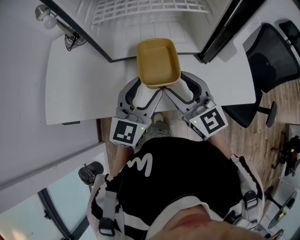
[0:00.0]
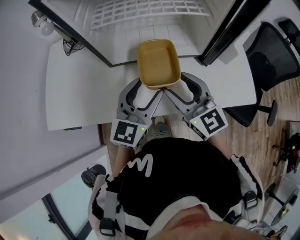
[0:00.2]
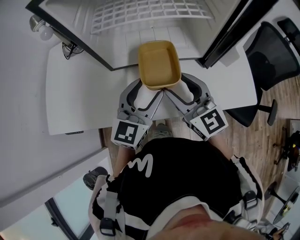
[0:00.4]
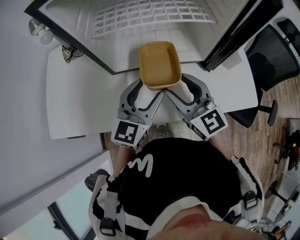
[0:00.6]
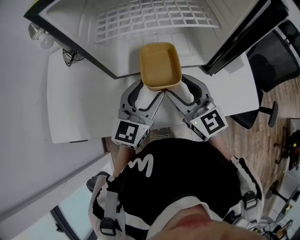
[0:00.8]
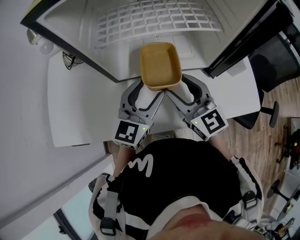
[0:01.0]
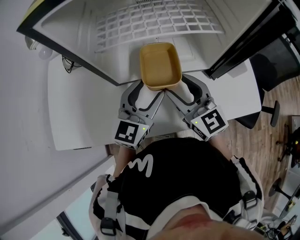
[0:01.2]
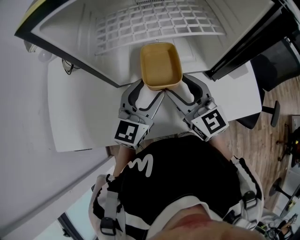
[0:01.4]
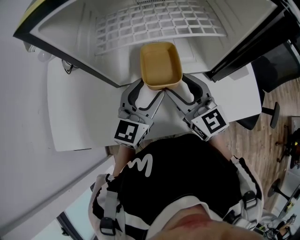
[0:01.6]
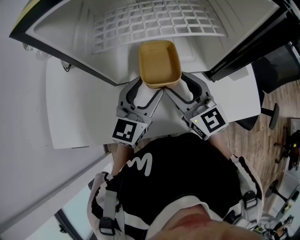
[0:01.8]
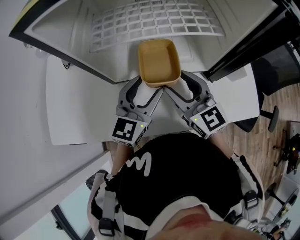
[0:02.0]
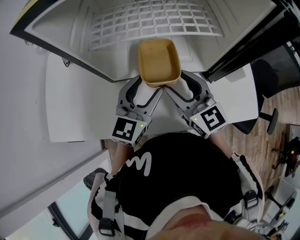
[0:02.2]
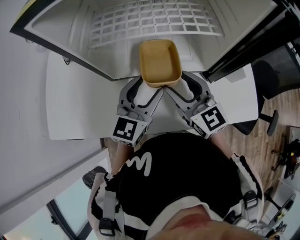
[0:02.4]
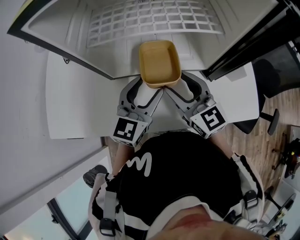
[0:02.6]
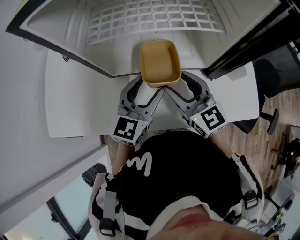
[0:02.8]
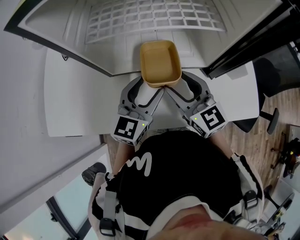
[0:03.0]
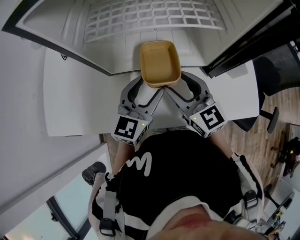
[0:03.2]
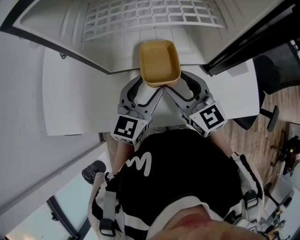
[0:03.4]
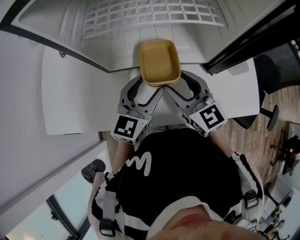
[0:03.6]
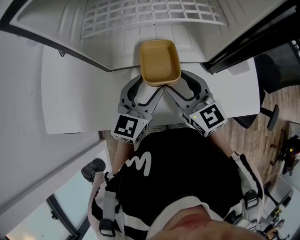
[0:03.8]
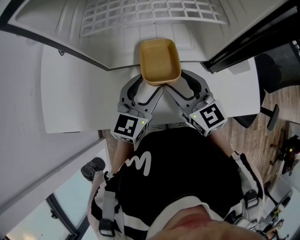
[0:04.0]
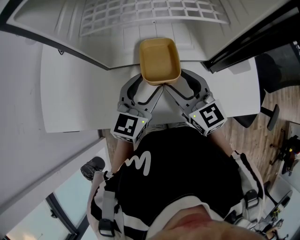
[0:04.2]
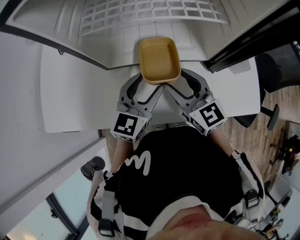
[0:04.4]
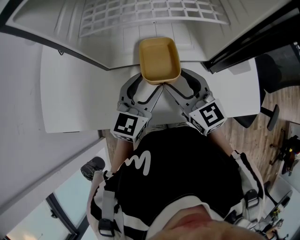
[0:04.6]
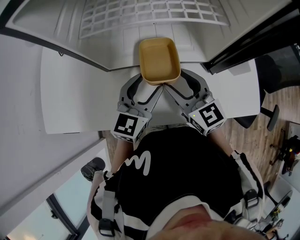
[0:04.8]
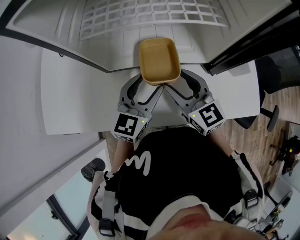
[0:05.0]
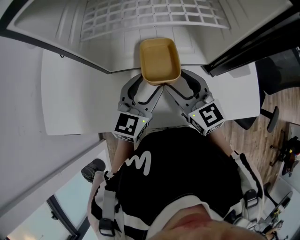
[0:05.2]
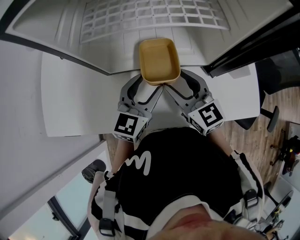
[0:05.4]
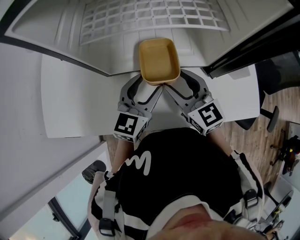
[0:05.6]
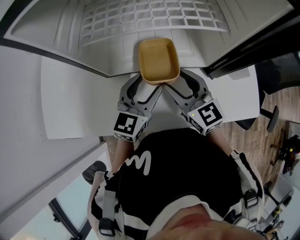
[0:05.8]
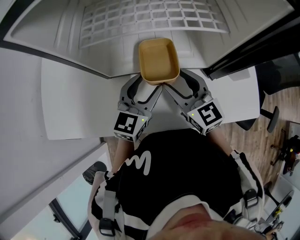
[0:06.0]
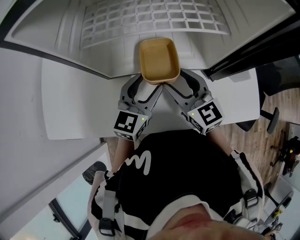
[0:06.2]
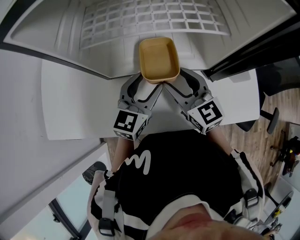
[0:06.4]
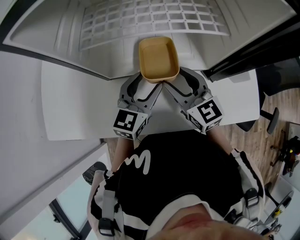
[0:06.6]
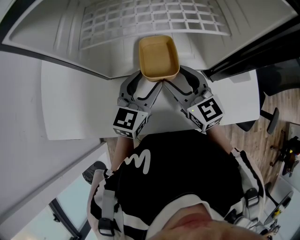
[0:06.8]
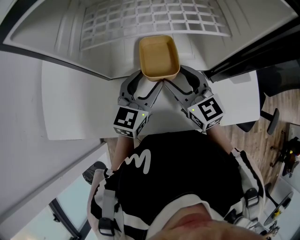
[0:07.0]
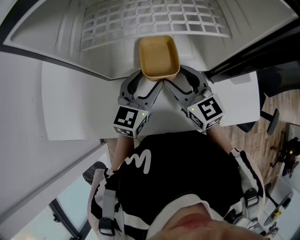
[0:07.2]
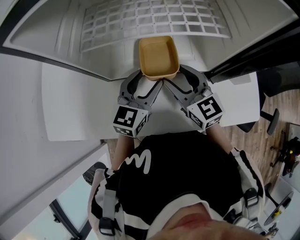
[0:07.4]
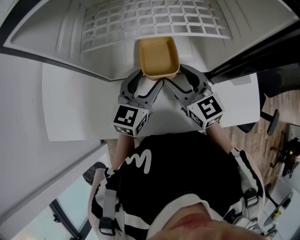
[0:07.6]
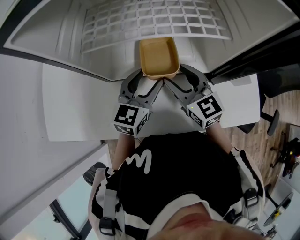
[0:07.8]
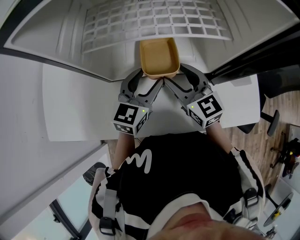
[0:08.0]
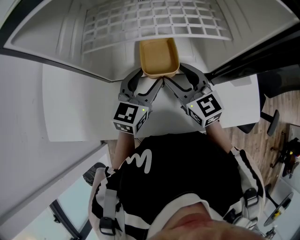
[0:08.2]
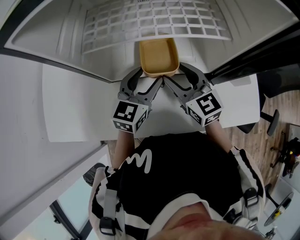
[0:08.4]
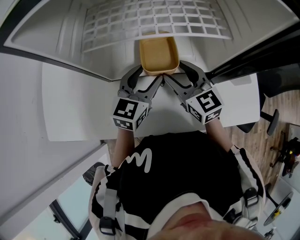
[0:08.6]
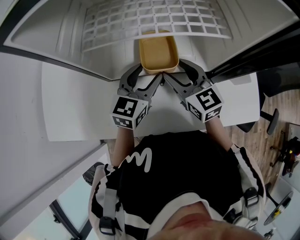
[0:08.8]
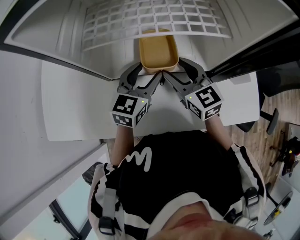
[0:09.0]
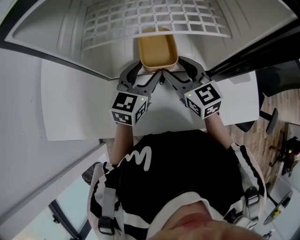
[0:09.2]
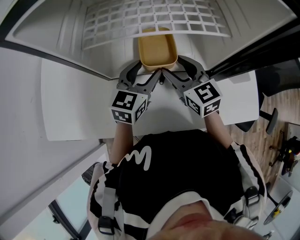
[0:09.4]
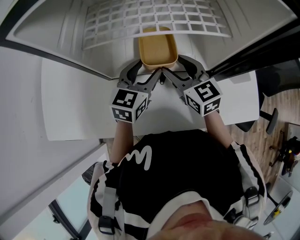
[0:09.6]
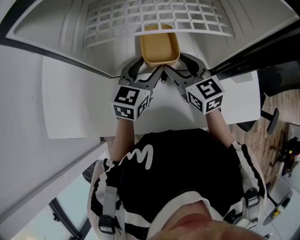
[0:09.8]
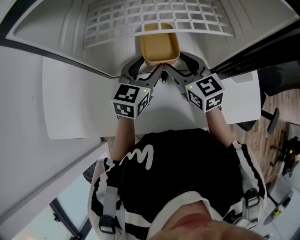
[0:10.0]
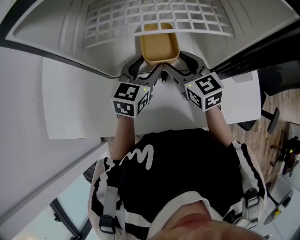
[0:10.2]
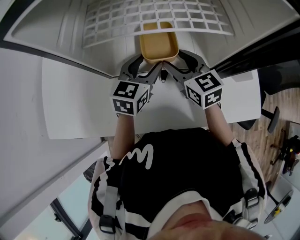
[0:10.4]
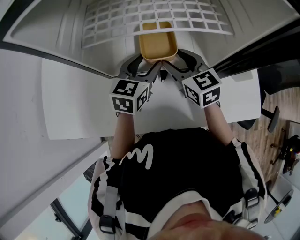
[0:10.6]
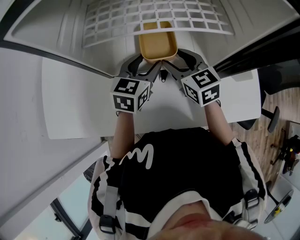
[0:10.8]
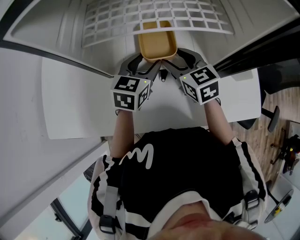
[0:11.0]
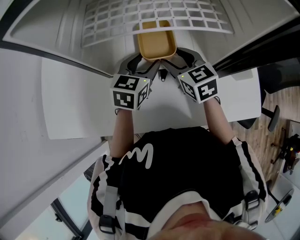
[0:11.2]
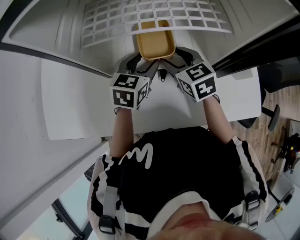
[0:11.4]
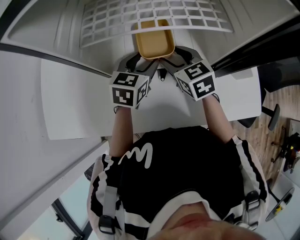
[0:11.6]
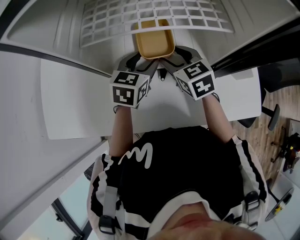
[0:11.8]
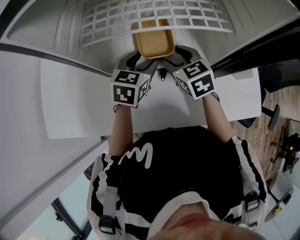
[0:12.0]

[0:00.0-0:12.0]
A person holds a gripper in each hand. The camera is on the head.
0:00.0 to 0:01.6: The two grippers go approximately 10 cm forward.
0:01.6 to 0:06.0: The grippers make only small movements.
0:06.0 to 0:09.0: The grippers make only small movements.
0:09.0 to 0:12.0: The grippers stay close to where they were, moving slightly.

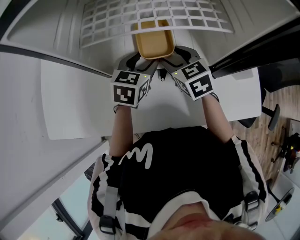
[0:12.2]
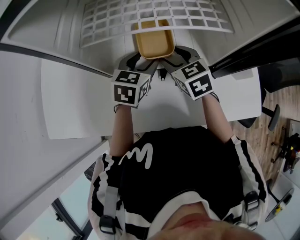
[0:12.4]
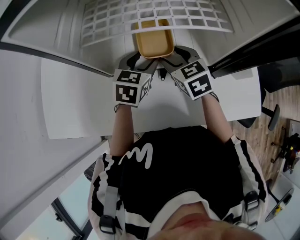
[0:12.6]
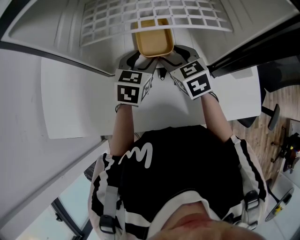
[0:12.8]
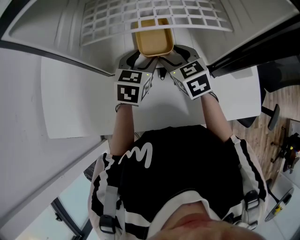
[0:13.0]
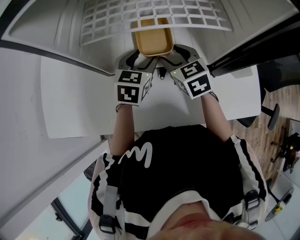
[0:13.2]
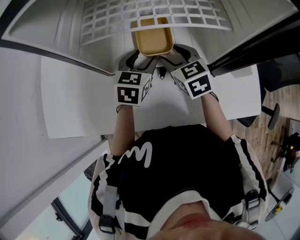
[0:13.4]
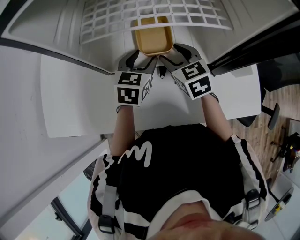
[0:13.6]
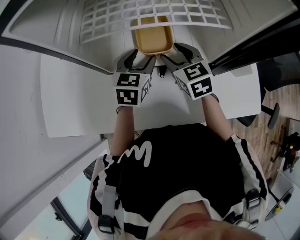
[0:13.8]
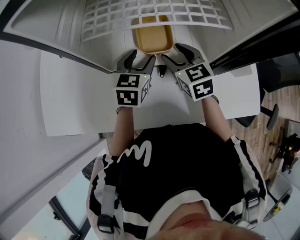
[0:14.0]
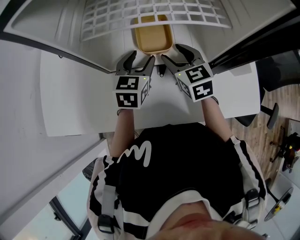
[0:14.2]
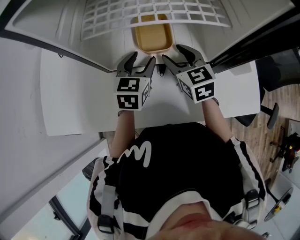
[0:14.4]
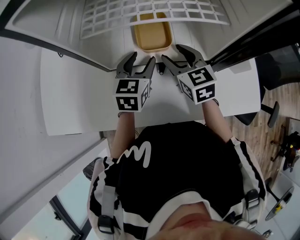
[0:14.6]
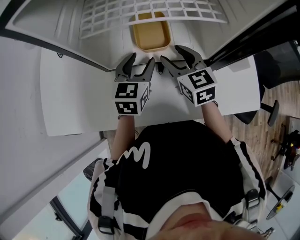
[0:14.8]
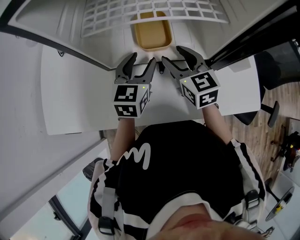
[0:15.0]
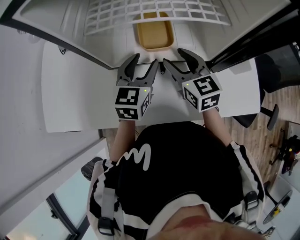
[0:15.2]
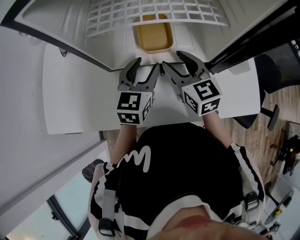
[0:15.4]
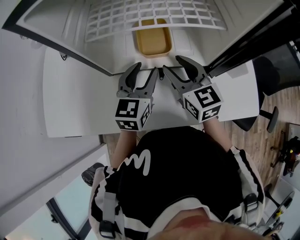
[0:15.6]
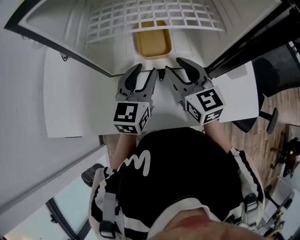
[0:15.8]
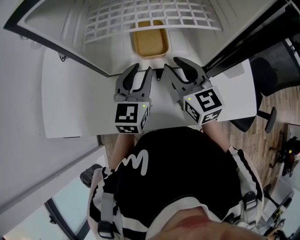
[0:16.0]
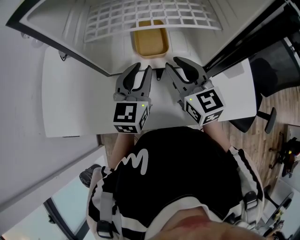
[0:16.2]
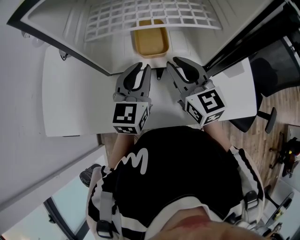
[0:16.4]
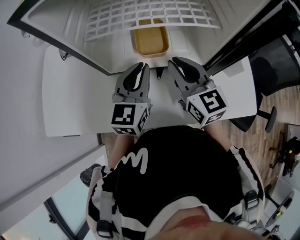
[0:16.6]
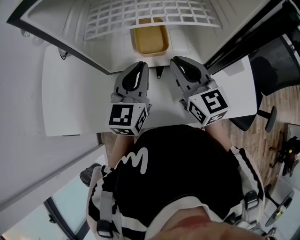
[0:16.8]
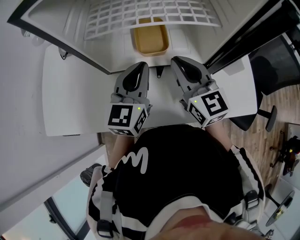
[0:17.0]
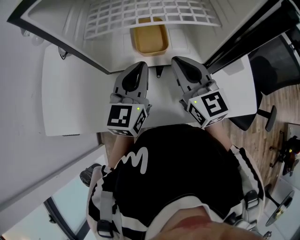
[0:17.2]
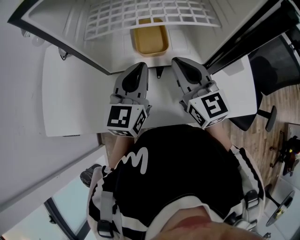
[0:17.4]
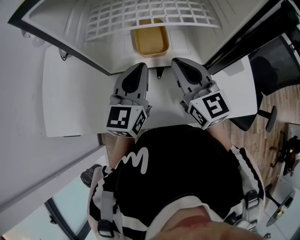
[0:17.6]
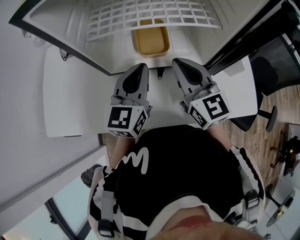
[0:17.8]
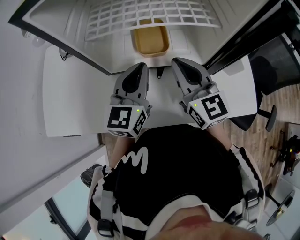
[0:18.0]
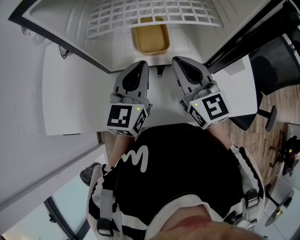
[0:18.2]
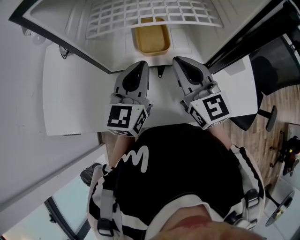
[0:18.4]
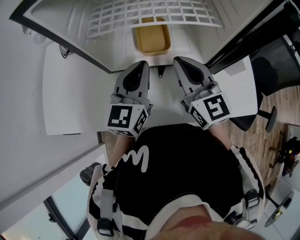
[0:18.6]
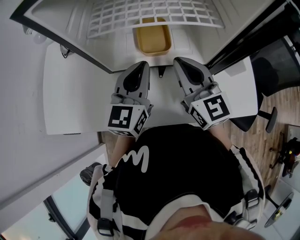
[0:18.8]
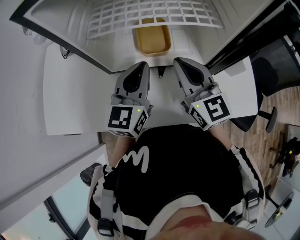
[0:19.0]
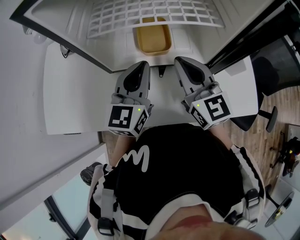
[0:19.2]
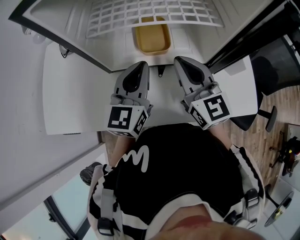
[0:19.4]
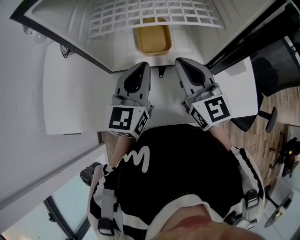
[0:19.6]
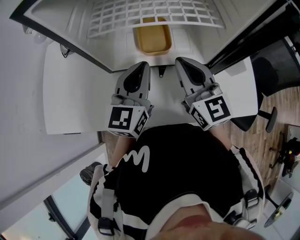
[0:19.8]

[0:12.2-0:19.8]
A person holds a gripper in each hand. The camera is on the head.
0:12.2 to 0:13.8: The grippers move only a little.
0:13.8 to 0:15.2: The right gripper moves approximately 5 cm. The left gripper shifts by roughly 5 cm.
0:15.2 to 0:16.8: Both grippers travel together upward, about 5 cm. The left gripper closes its fingers. Meanwhile the right gripper closes up.
0:16.8 to 0:18.2: There are only small adjustments of the grippers.
0:18.2 to 0:19.8: Neither gripper changes place.

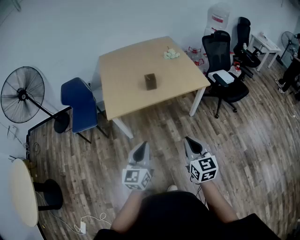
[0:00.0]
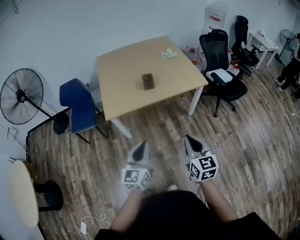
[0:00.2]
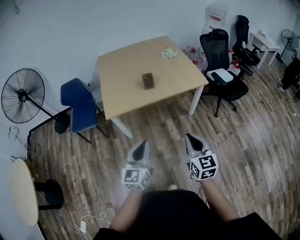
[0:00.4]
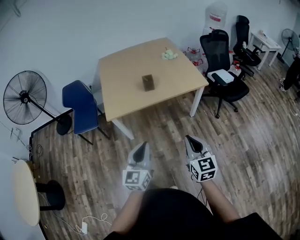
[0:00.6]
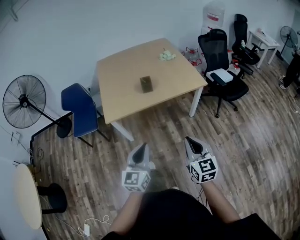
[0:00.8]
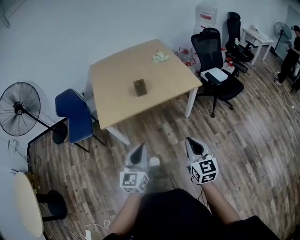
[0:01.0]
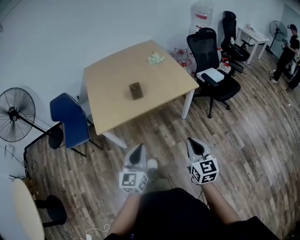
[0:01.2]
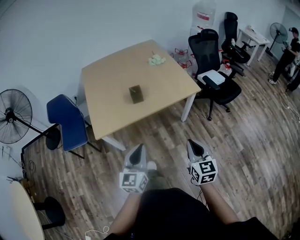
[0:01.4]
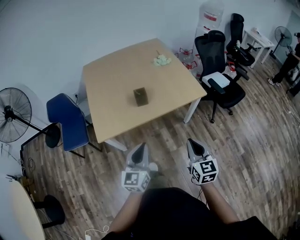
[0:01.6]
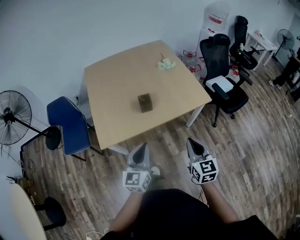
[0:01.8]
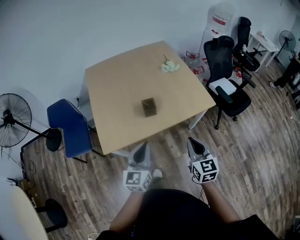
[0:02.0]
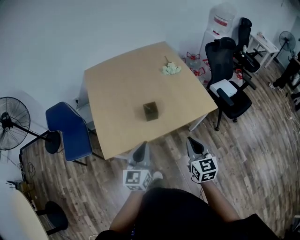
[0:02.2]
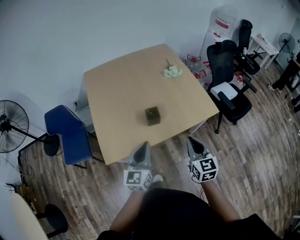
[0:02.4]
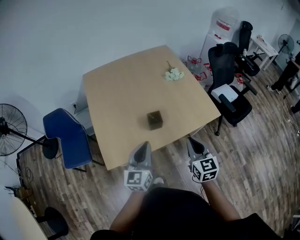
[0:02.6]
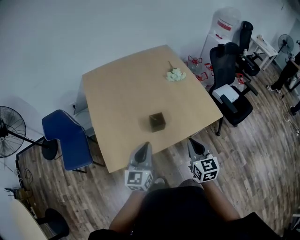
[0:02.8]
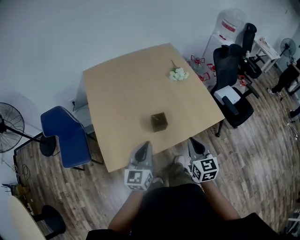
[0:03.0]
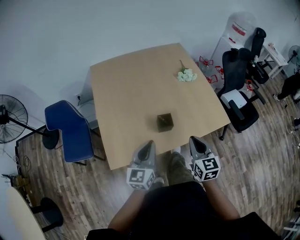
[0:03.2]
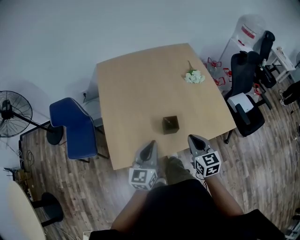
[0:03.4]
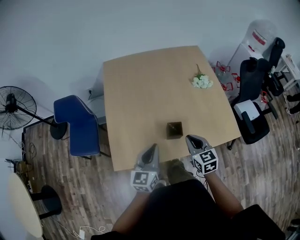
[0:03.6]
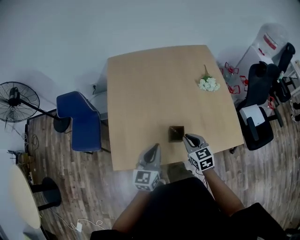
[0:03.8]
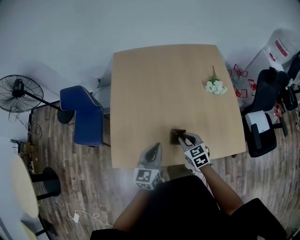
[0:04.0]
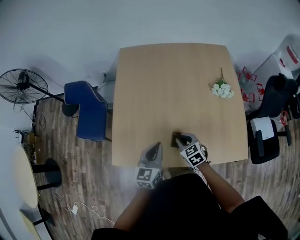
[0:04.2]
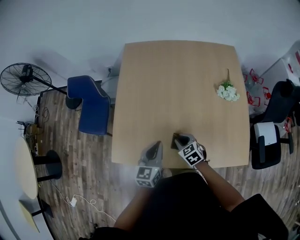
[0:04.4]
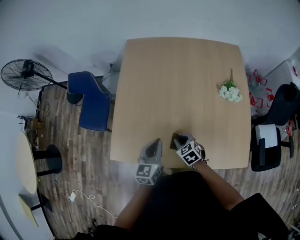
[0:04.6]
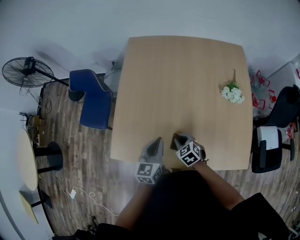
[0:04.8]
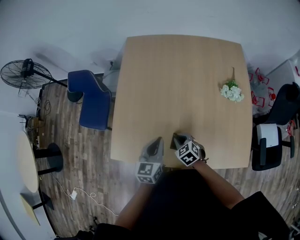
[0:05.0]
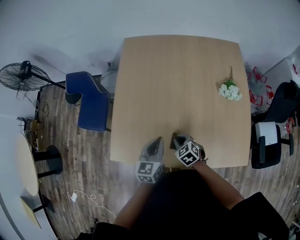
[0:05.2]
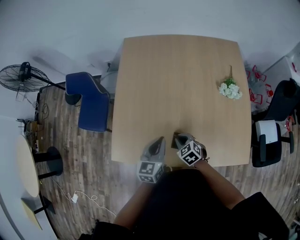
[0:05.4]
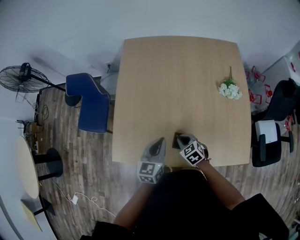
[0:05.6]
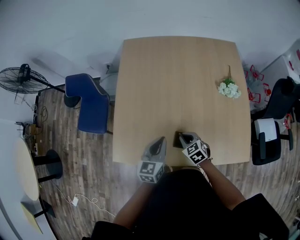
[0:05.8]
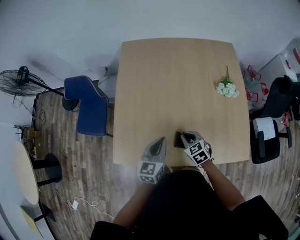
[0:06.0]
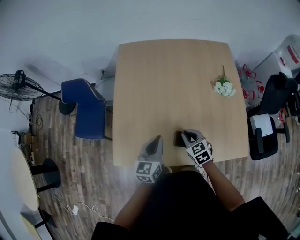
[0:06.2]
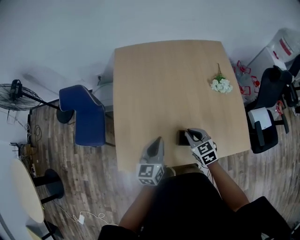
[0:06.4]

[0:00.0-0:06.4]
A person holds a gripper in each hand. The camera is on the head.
0:00.0 to 0:01.6: Both grippers move forward, approximately 20 cm.
0:01.6 to 0:03.2: The two grippers go roughly 35 cm forward and to the left.
0:03.2 to 0:04.8: The right gripper moves some 35 cm, and changes its angle by some 60 degrees; the left gripper ends up approximately 25 cm from where it was, and swivels approximately 30 degrees.
0:04.8 to 0:06.4: The left gripper goes approximately 5 cm to the left, while the right gripper moves upward, roughly 10 cm, and rotates approximately 20 degrees.
